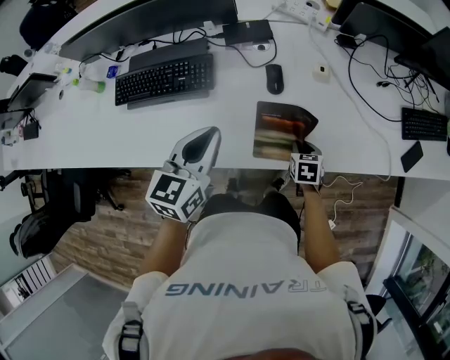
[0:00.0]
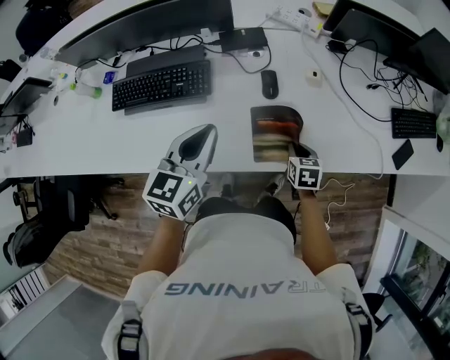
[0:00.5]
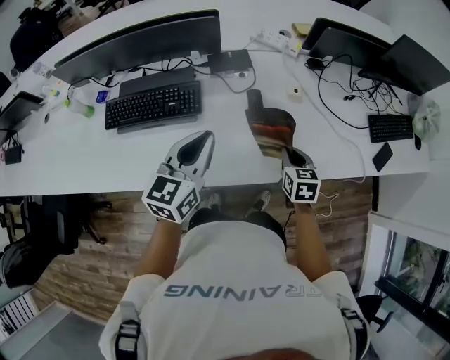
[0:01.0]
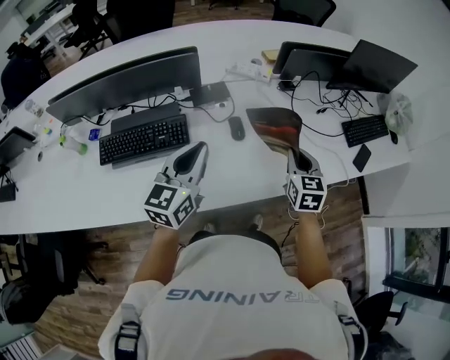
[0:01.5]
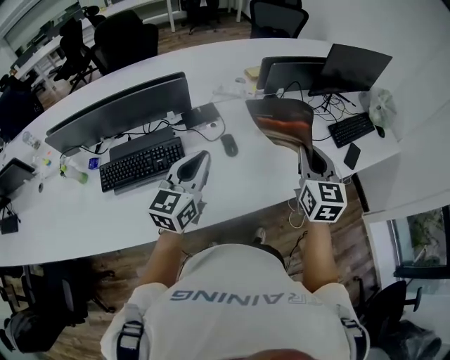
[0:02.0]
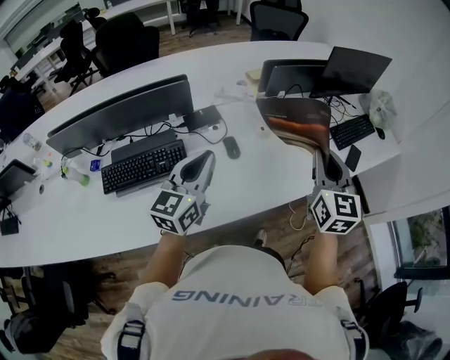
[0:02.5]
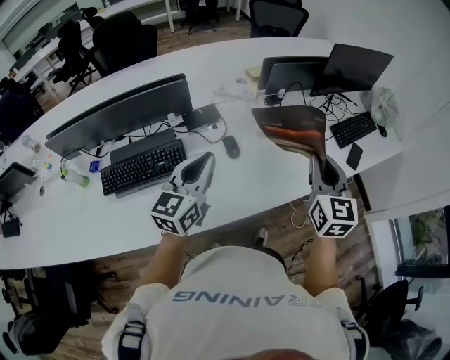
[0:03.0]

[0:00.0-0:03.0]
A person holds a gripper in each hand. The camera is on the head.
0:00.0 to 0:01.5: The left gripper heads upward, covering some 10 cm. The right gripper travels upward by about 30 cm, and tilts its fingers some 30 degrees upward.
0:01.5 to 0:03.0: The right gripper moves upward, roughly 15 cm.

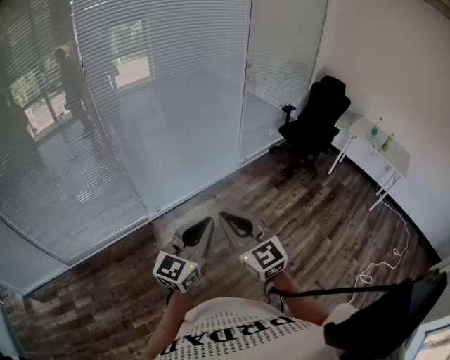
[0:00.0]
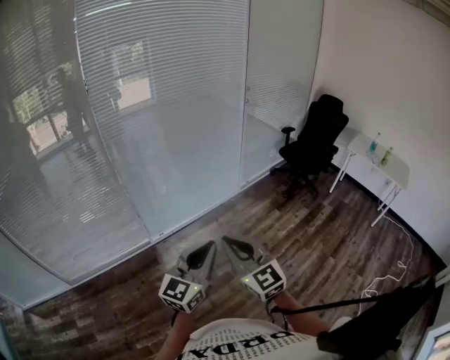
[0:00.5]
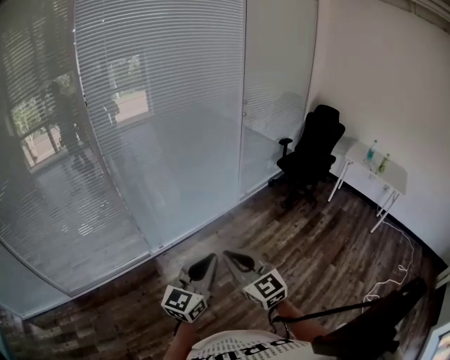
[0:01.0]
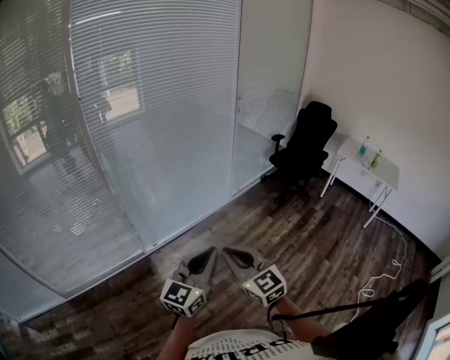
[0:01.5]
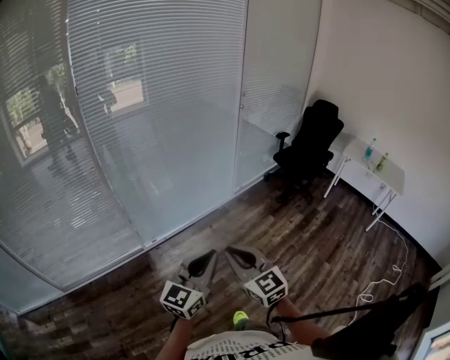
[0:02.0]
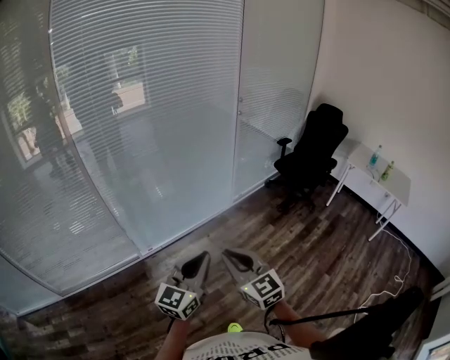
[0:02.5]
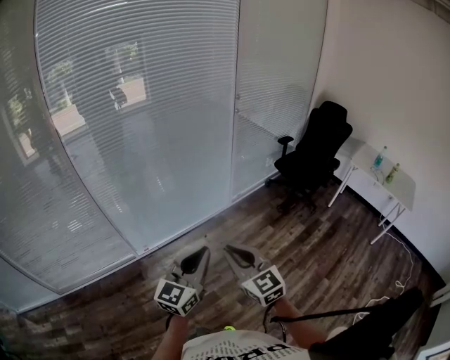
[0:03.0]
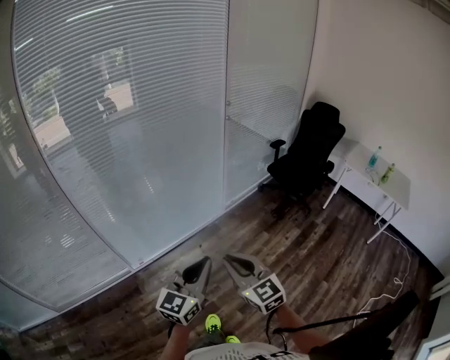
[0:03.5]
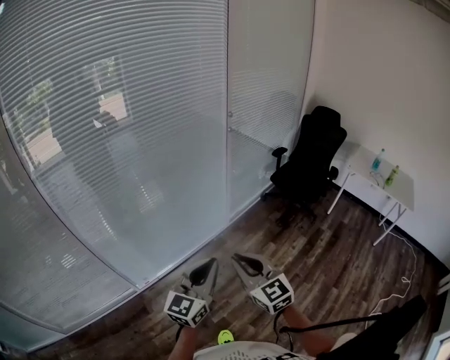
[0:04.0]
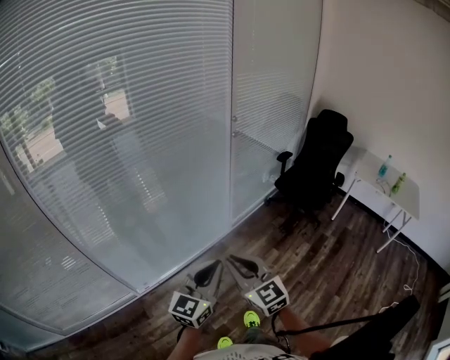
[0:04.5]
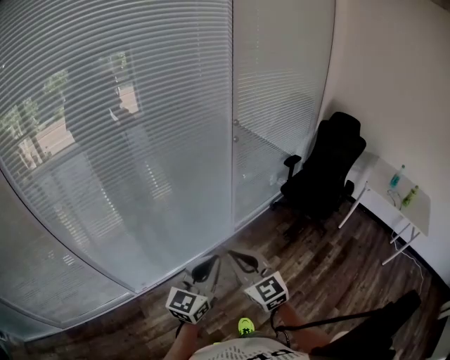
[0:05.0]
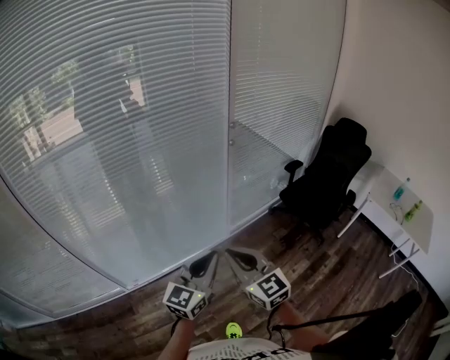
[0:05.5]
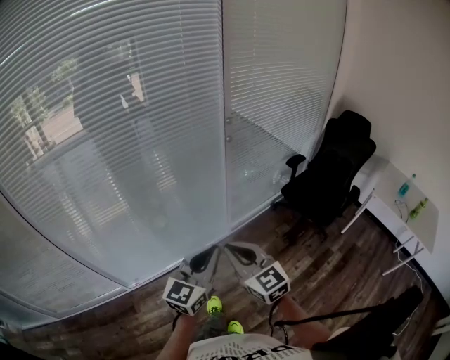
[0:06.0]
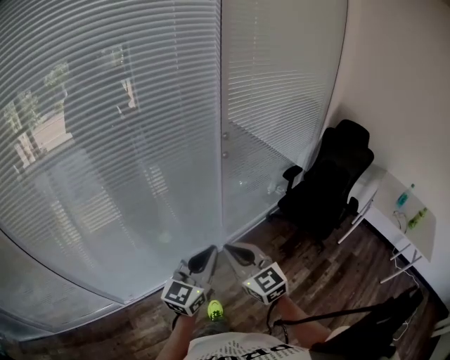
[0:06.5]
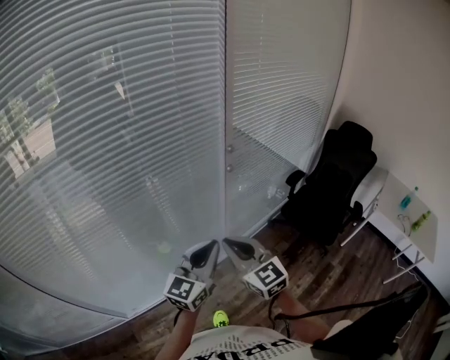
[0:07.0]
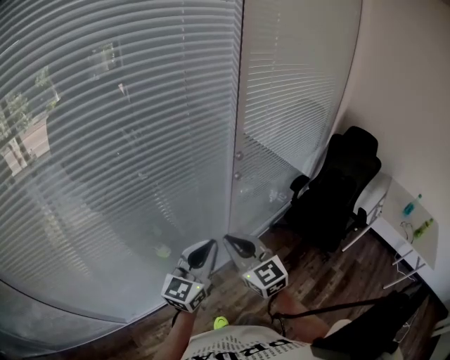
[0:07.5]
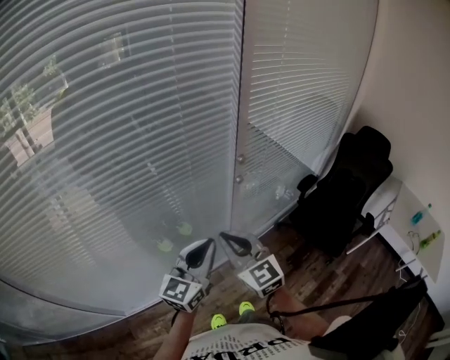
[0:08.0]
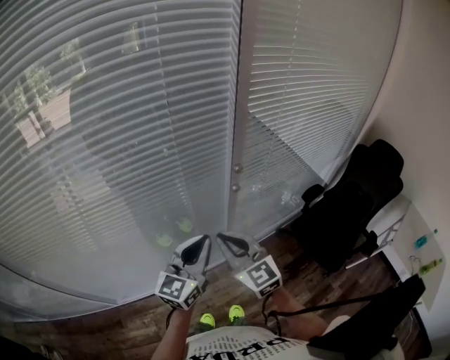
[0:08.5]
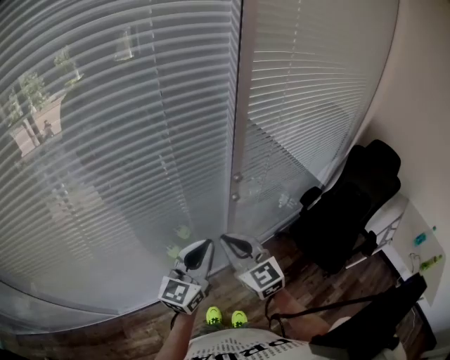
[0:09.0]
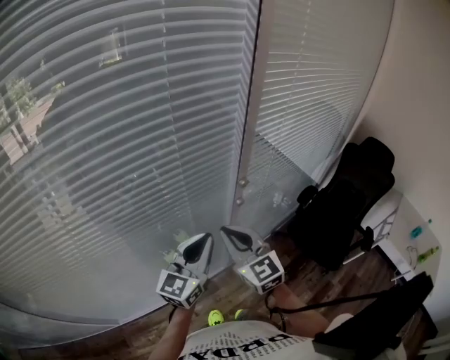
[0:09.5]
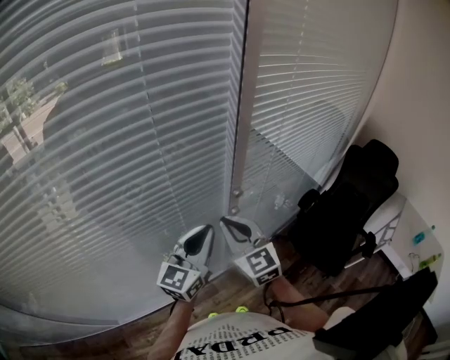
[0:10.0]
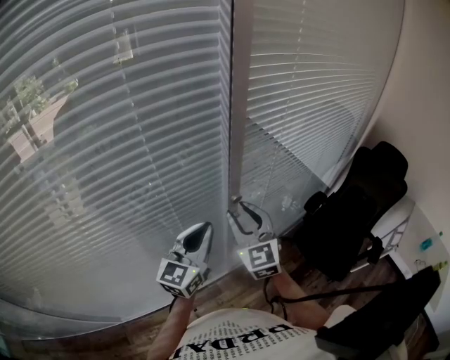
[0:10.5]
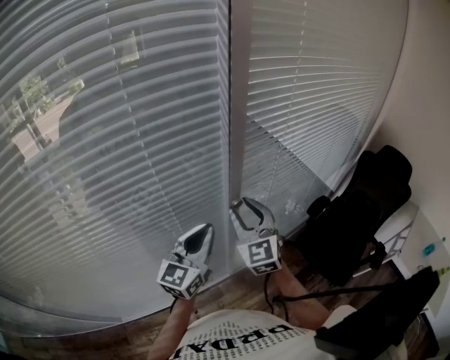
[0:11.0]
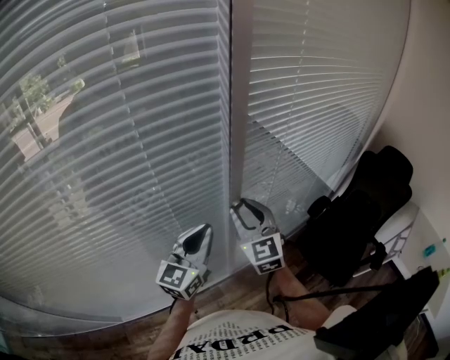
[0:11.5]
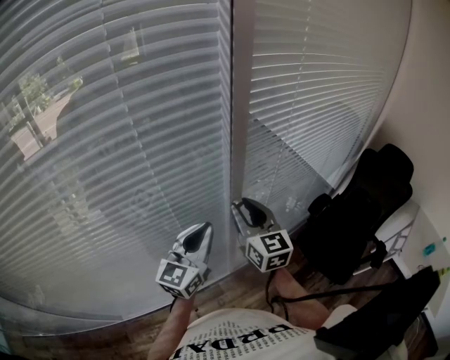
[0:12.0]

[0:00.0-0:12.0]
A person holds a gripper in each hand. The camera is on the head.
0:00.0 to 0:02.0: The right gripper goes about 5 cm downward.
0:02.0 to 0:04.0: The grippers both shift forward by some 30 cm.
0:04.0 to 0:06.0: The grippers both shift forward and to the right by roughly 25 cm.
0:06.0 to 0:08.0: The two grippers go some 30 cm forward.
0:08.0 to 0:10.0: Both grippers move forward, about 15 cm.
0:10.0 to 0:12.0: The right gripper travels forward and to the right by approximately 10 cm, swivels some 20 degrees, and opens its fingers.

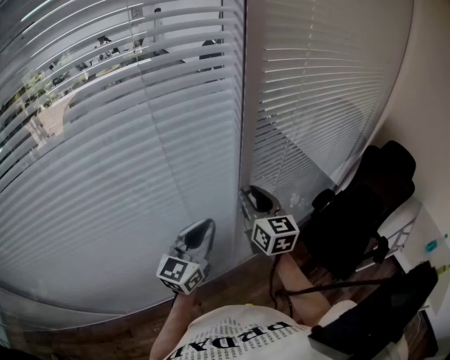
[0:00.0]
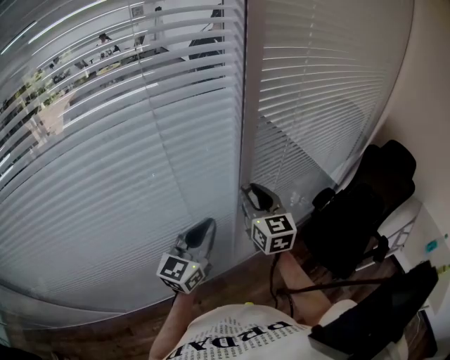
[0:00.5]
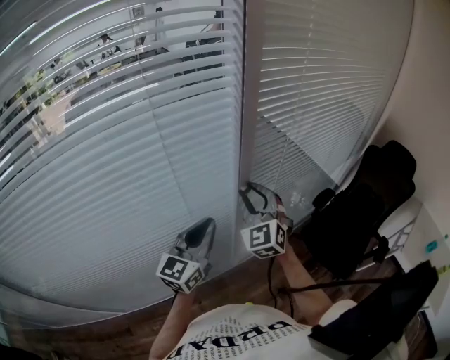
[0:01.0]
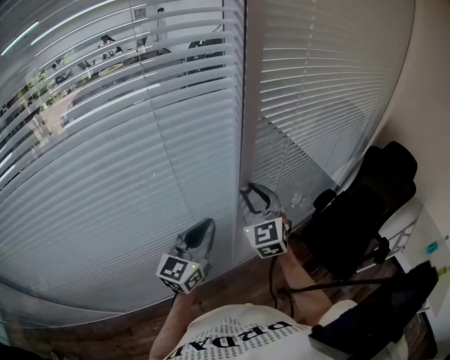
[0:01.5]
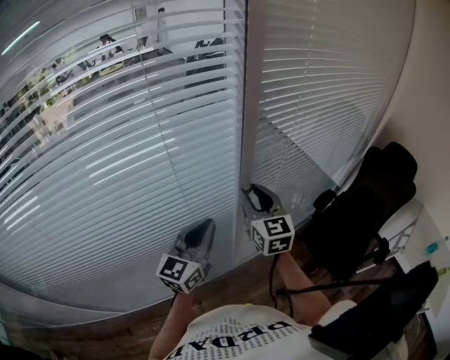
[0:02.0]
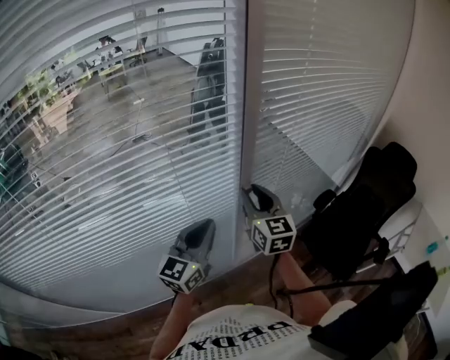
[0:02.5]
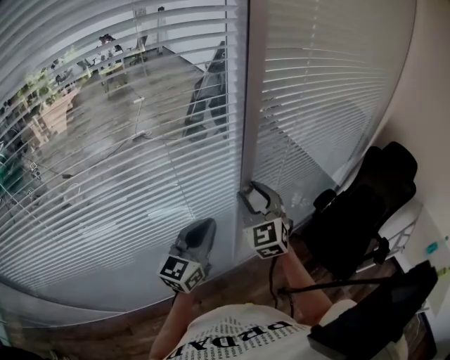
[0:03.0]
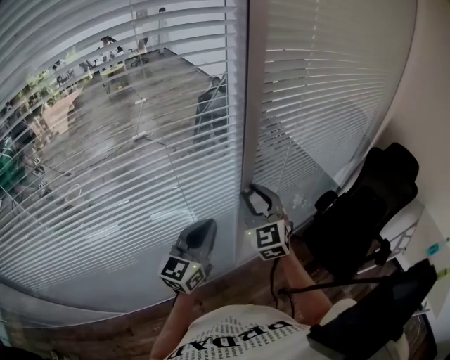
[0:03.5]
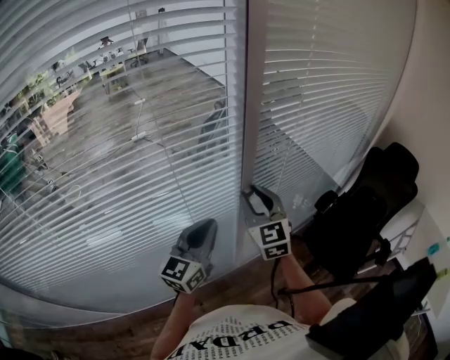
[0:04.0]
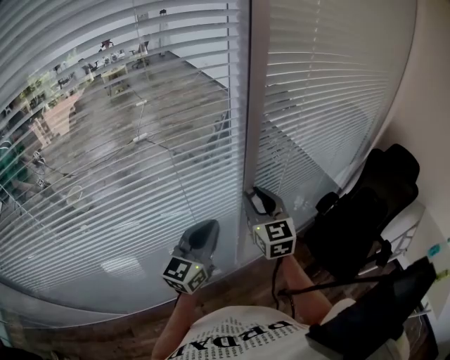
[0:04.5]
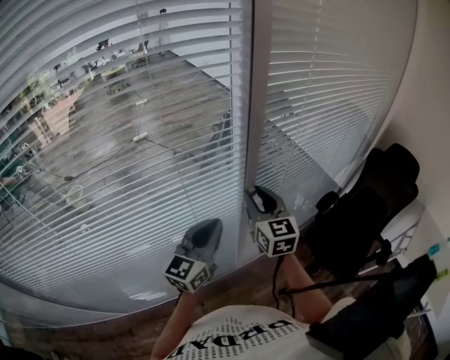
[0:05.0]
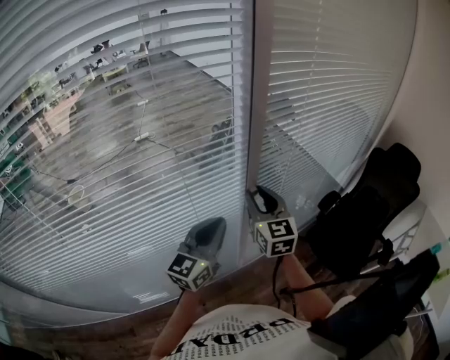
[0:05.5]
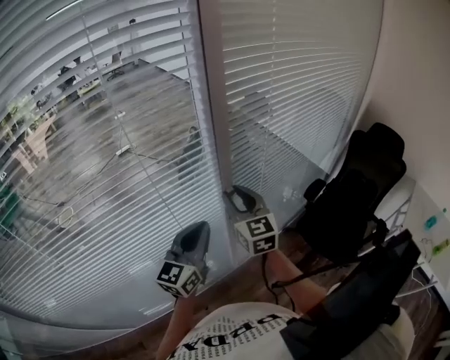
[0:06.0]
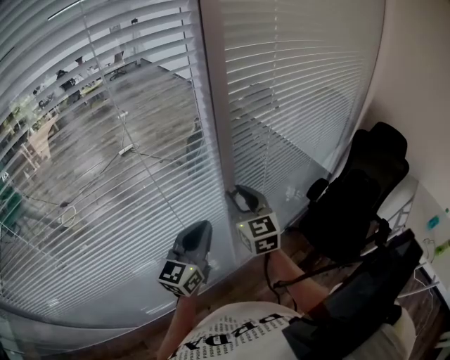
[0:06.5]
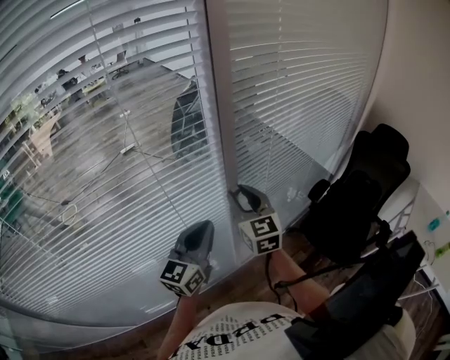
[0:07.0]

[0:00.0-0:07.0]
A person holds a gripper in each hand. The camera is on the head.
0:02.0 to 0:03.5: The right gripper swivels about 20 degrees.
0:03.5 to 0:05.0: The right gripper swivels some 30 degrees.
0:05.0 to 0:07.0: The two grippers keep their place.

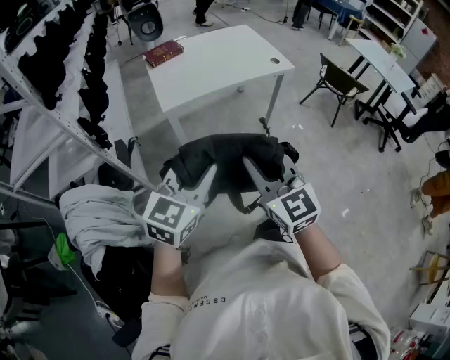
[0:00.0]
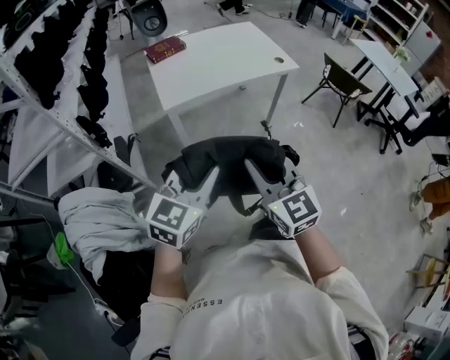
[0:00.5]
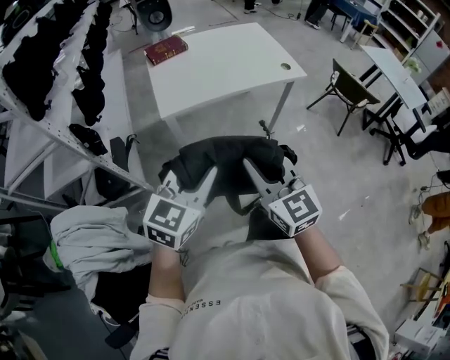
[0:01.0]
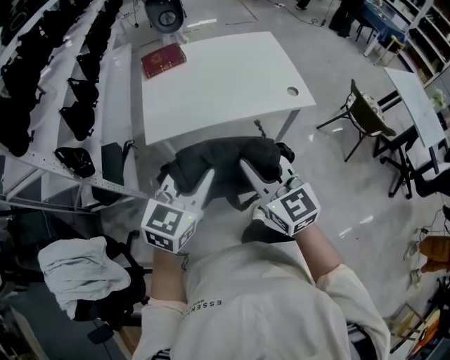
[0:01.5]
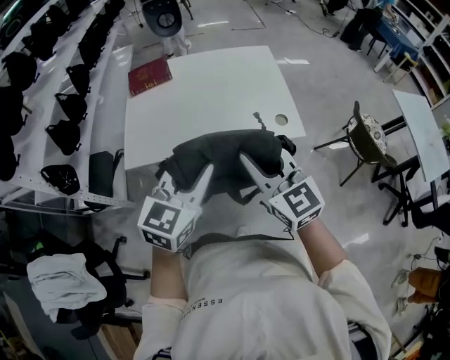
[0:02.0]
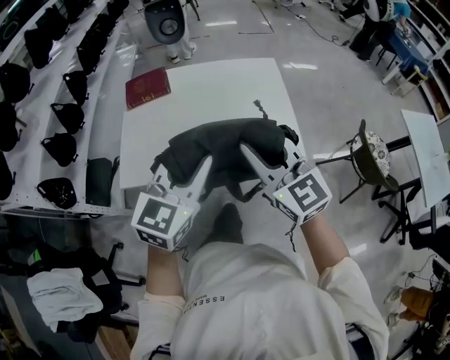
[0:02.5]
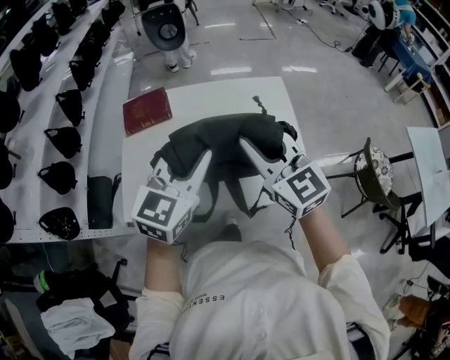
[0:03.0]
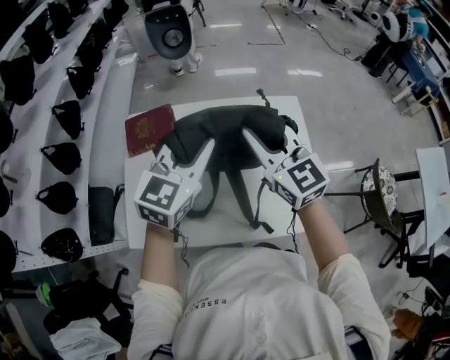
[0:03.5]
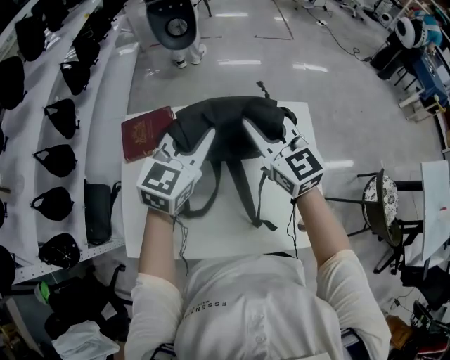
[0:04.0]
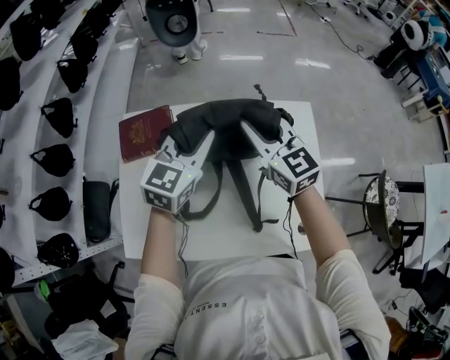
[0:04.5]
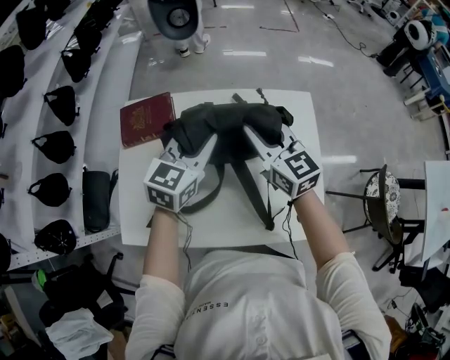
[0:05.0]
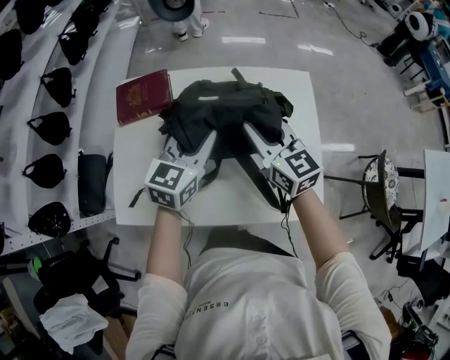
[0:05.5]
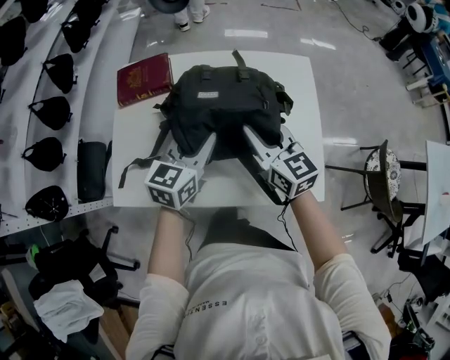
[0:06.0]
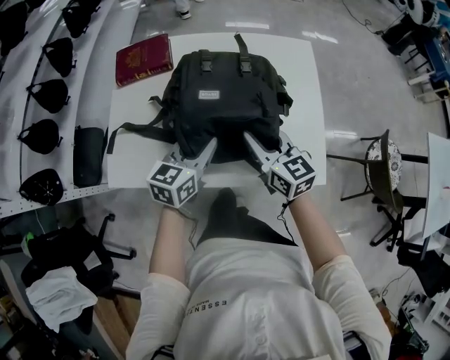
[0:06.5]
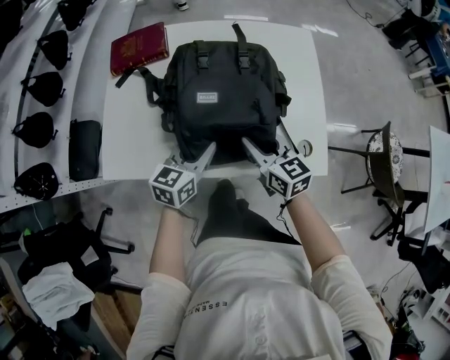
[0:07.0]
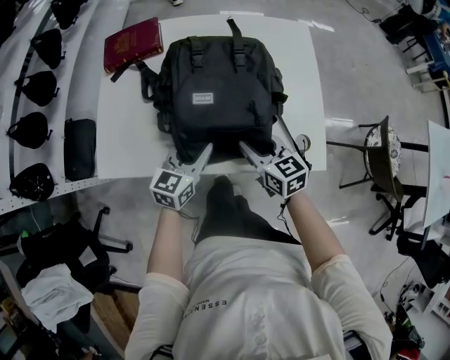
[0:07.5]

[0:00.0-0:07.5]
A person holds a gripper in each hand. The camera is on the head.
0:00.0 to 0:02.0: The two grippers travel together, forward and to the right, some 50 cm. The right gripper swivels approximately 20 degrees.
0:02.0 to 0:04.0: Both grippers are carried forward, some 50 cm.
0:04.0 to 0:05.5: Both grippers travel together backward and downward, some 10 cm.
0:05.5 to 0:07.5: Both grippers travel together backward and downward, about 25 cm.
